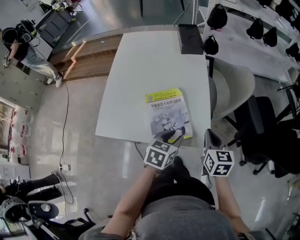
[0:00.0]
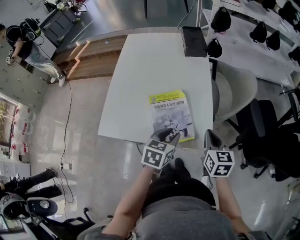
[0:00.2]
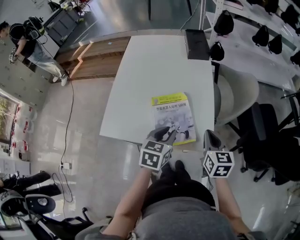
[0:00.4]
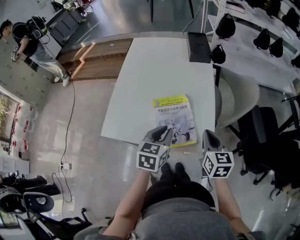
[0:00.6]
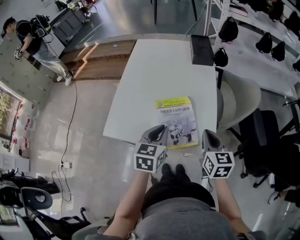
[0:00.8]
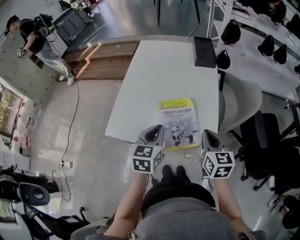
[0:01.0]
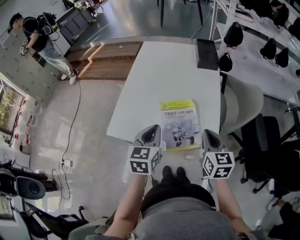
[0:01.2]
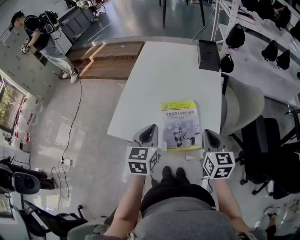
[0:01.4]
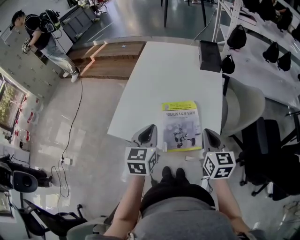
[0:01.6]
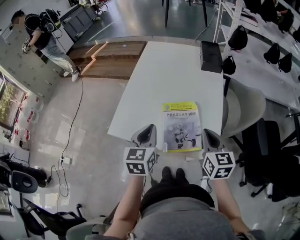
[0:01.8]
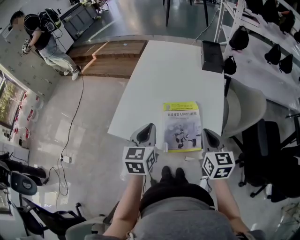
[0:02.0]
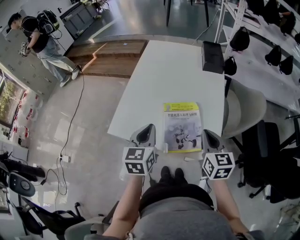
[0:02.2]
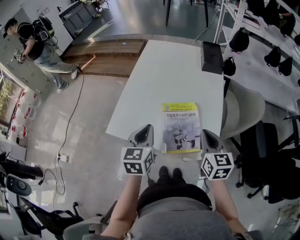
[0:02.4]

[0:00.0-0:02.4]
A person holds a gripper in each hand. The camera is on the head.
0:00.0 to 0:01.2: The right gripper moves to the left, some 5 cm; the left gripper heads to the left and upward, covering roughly 15 cm, turns by some 30 degrees, and closes up.
0:01.2 to 0:02.4: There are only small adjustments of the grippers.

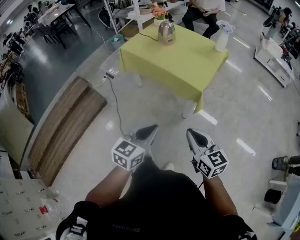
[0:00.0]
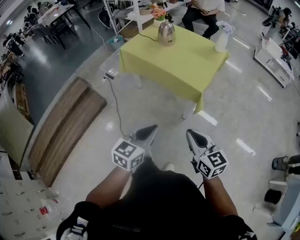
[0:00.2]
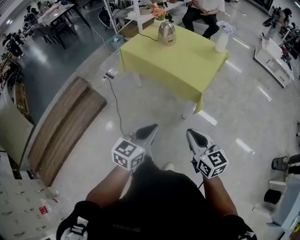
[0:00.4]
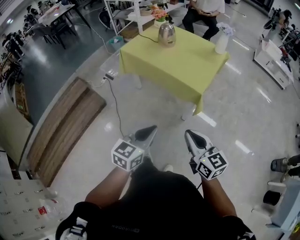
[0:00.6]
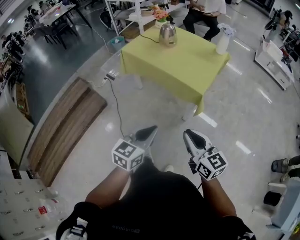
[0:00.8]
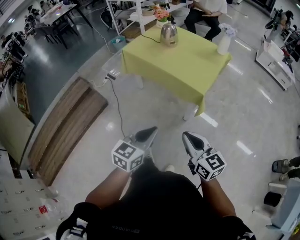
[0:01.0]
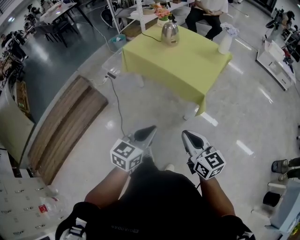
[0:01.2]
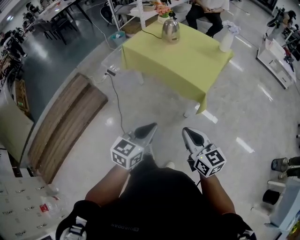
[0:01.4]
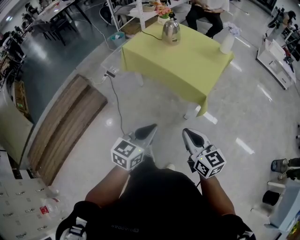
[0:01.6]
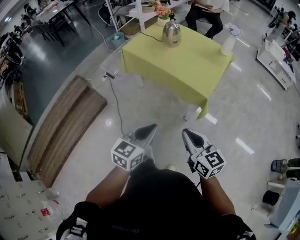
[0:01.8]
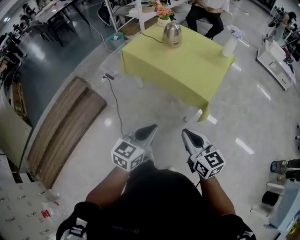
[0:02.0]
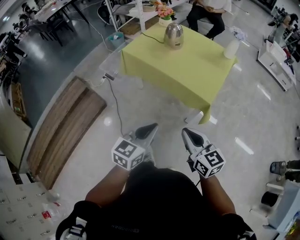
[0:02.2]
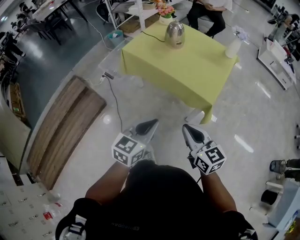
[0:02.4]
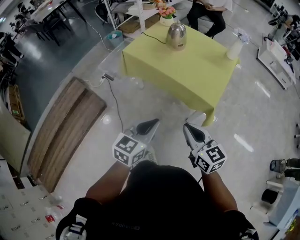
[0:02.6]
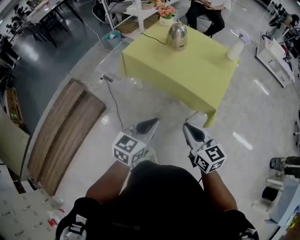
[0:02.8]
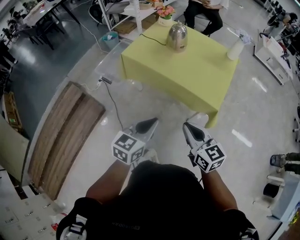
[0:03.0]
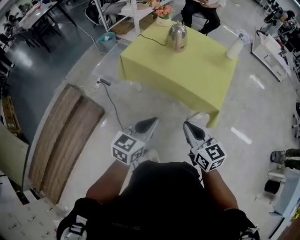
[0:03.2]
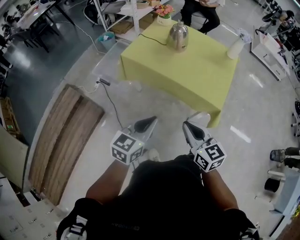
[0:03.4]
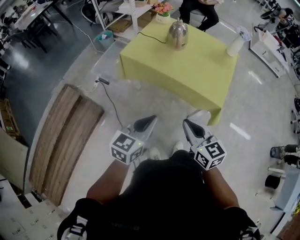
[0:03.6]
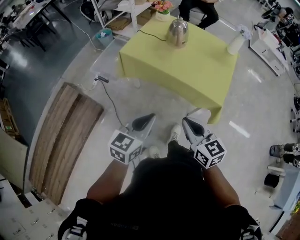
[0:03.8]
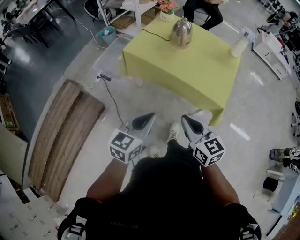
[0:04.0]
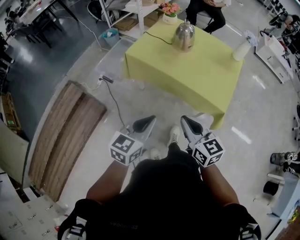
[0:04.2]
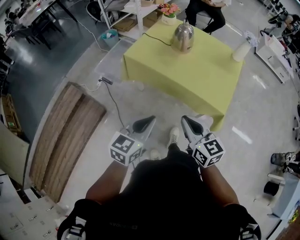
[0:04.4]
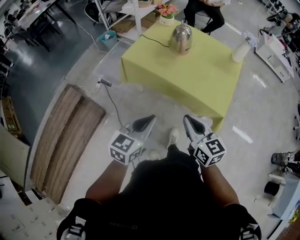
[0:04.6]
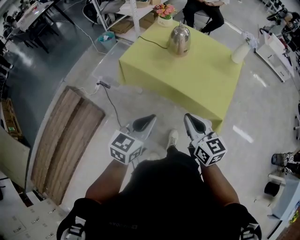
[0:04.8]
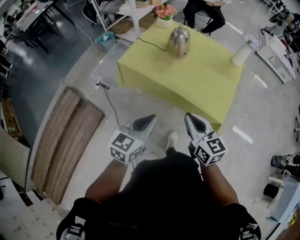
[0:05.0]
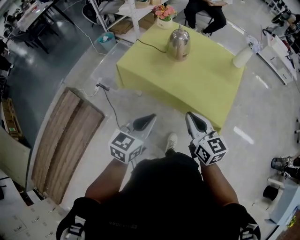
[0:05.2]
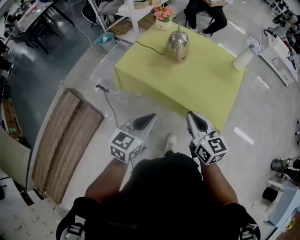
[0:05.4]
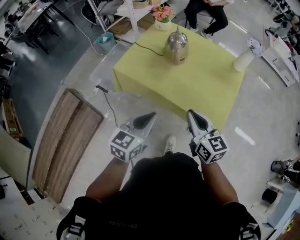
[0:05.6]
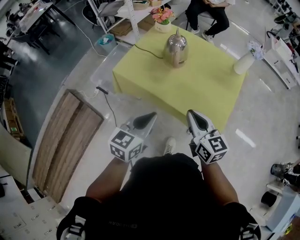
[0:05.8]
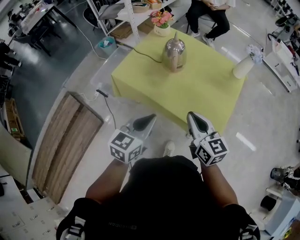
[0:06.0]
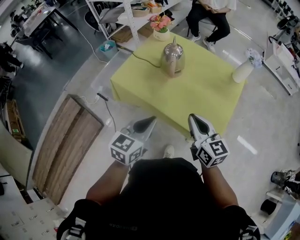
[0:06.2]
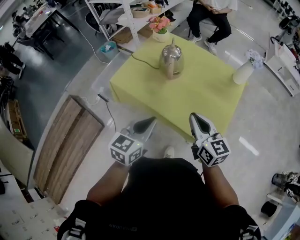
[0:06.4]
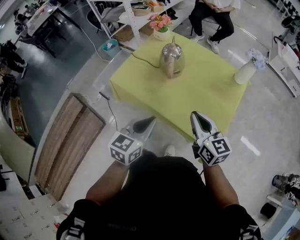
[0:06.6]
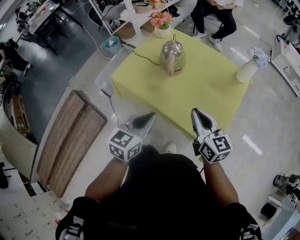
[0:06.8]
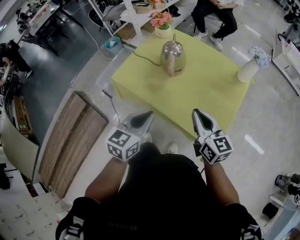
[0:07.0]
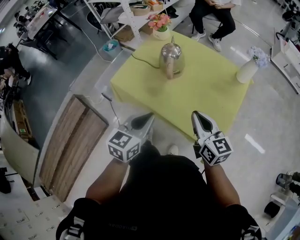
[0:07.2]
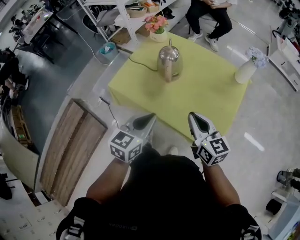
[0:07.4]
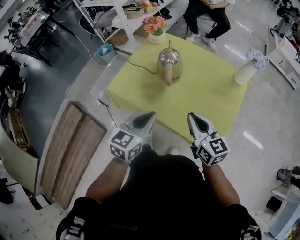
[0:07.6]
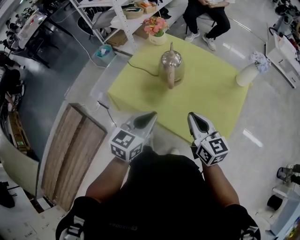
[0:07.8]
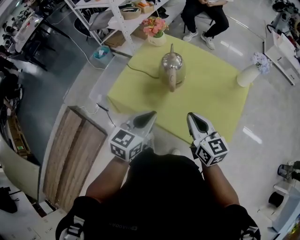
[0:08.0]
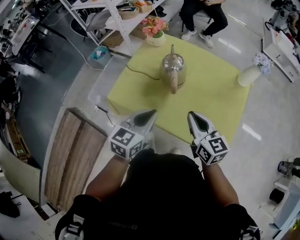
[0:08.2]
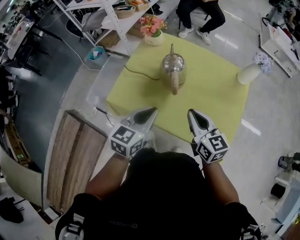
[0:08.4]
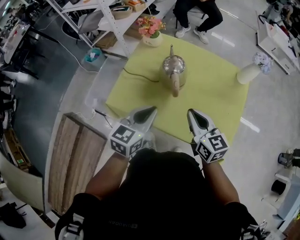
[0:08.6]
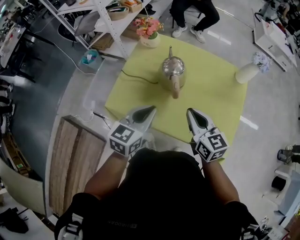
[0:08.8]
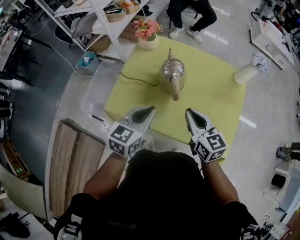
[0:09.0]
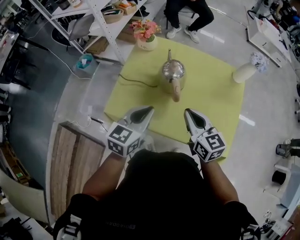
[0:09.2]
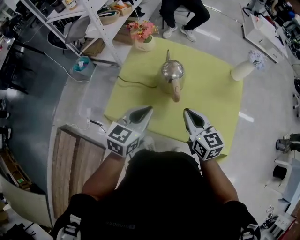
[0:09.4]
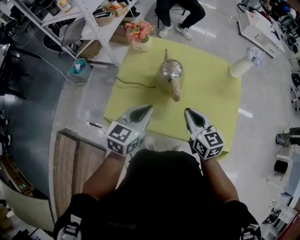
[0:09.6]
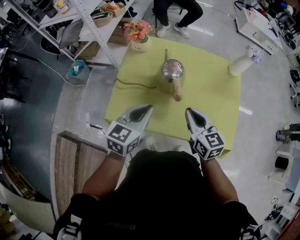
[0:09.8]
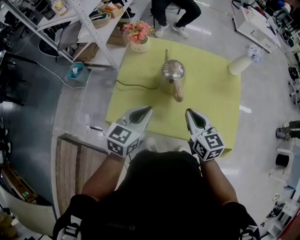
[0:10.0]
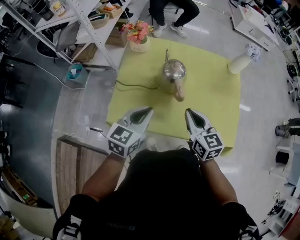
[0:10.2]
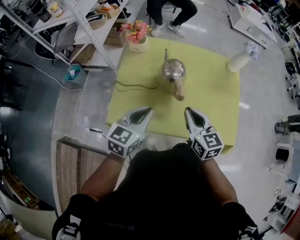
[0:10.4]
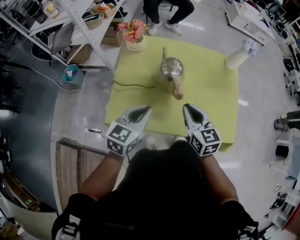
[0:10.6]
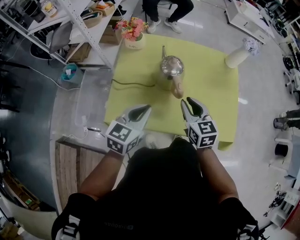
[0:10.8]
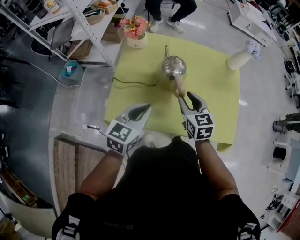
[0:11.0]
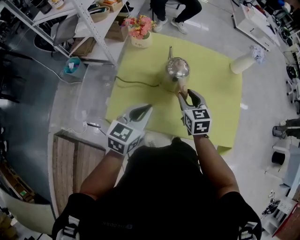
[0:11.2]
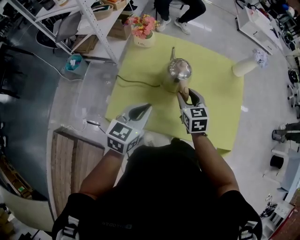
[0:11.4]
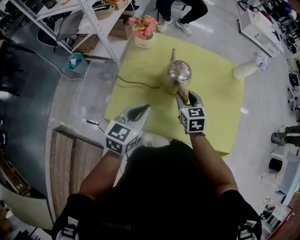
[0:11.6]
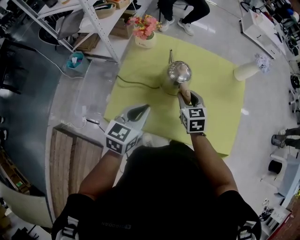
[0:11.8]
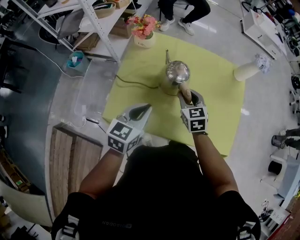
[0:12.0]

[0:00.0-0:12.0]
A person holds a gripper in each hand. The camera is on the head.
0:00.0 to 0:01.6: The right gripper moves roughly 5 cm. The left gripper changes place by roughly 5 cm.
0:01.6 to 0:03.0: Both grippers travel together forward and to the left, roughly 20 cm.
0:03.0 to 0:04.4: The left gripper is displaced to the left by about 5 cm. The right gripper travels forward and to the left by roughly 10 cm.
0:04.4 to 0:06.0: The two grippers go roughly 25 cm forward and to the right.
0:06.0 to 0:07.6: The two grippers go some 10 cm forward.
0:07.6 to 0:09.0: The two grippers go some 15 cm forward and to the left.
0:09.0 to 0:10.4: The left gripper shifts some 5 cm to the left.
0:10.4 to 0:12.0: The right gripper goes about 15 cm forward and downward, turns by about 20 degrees, and opens up.

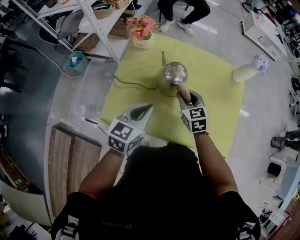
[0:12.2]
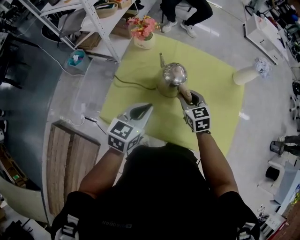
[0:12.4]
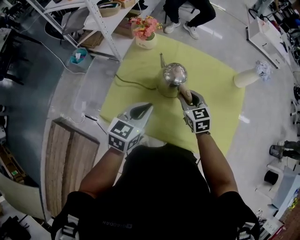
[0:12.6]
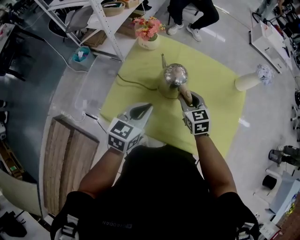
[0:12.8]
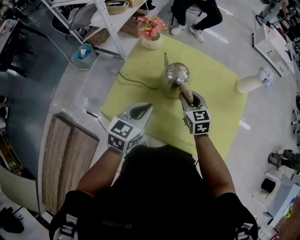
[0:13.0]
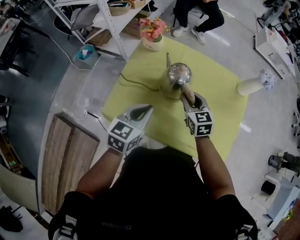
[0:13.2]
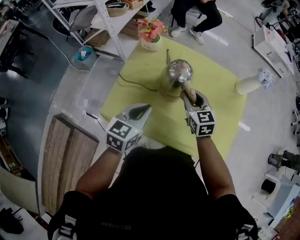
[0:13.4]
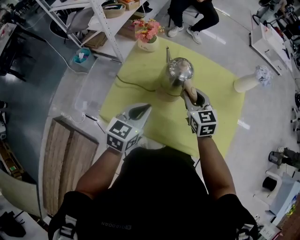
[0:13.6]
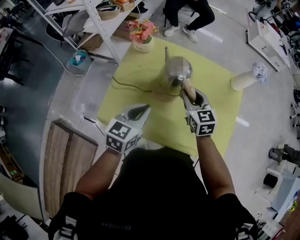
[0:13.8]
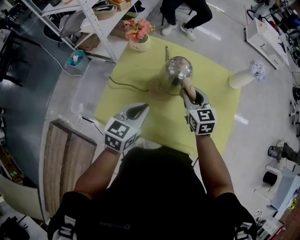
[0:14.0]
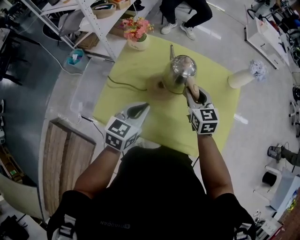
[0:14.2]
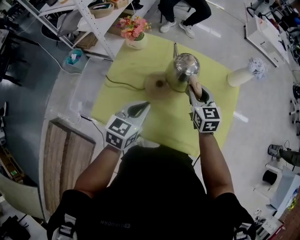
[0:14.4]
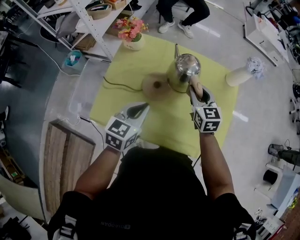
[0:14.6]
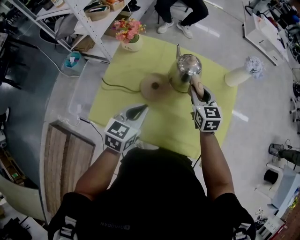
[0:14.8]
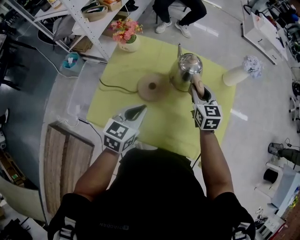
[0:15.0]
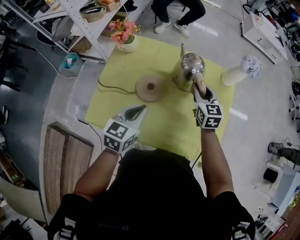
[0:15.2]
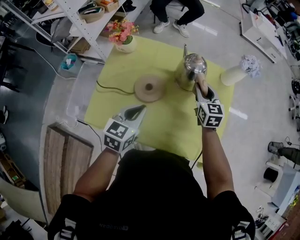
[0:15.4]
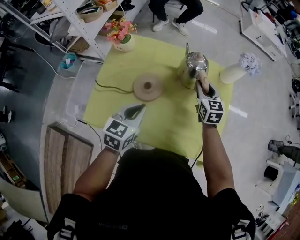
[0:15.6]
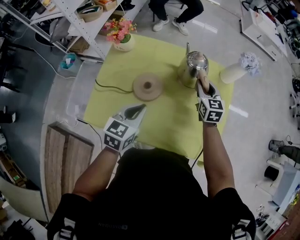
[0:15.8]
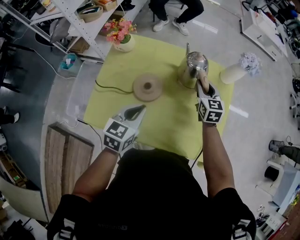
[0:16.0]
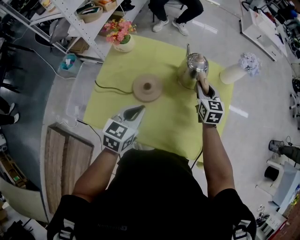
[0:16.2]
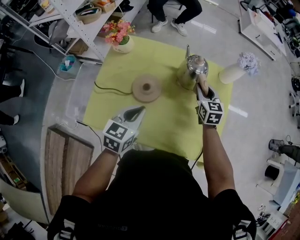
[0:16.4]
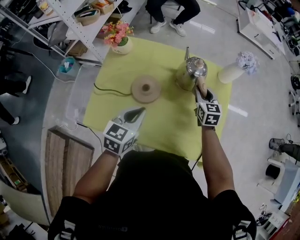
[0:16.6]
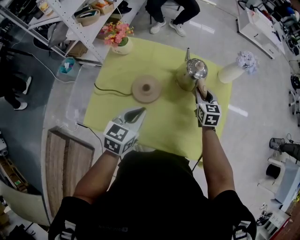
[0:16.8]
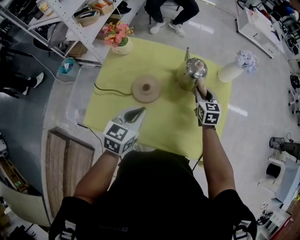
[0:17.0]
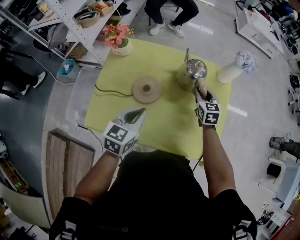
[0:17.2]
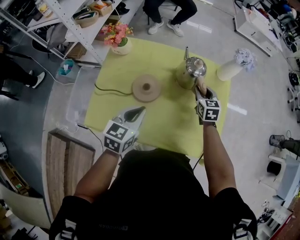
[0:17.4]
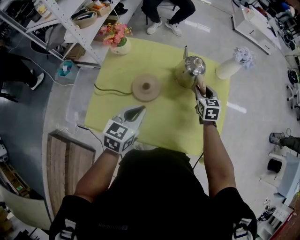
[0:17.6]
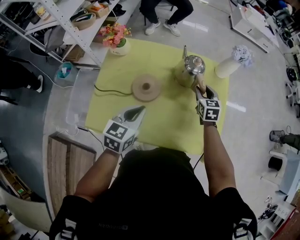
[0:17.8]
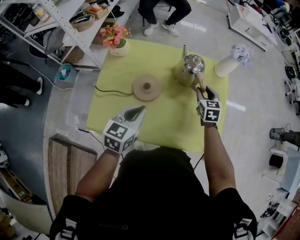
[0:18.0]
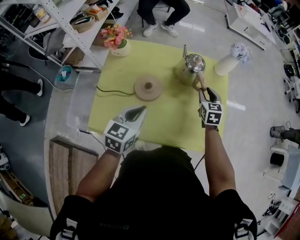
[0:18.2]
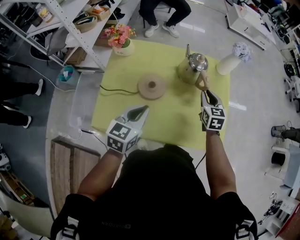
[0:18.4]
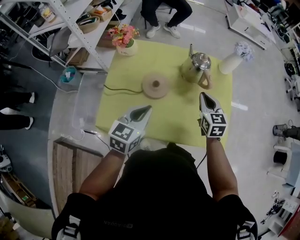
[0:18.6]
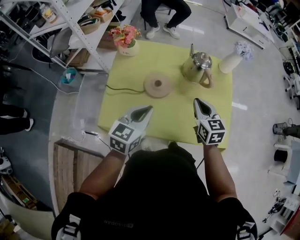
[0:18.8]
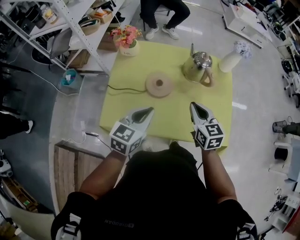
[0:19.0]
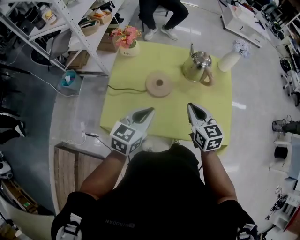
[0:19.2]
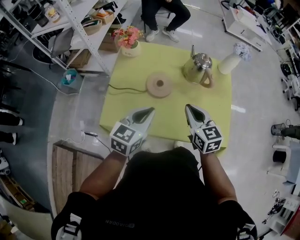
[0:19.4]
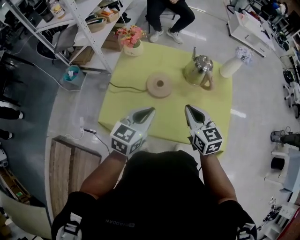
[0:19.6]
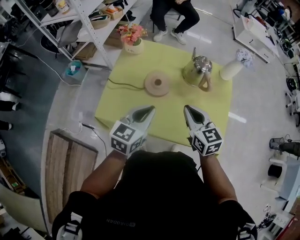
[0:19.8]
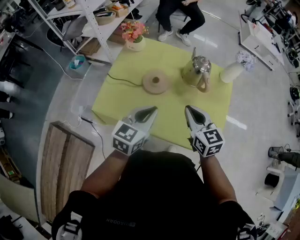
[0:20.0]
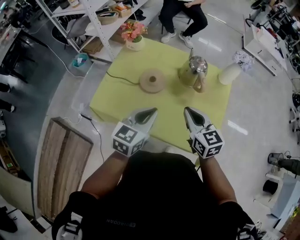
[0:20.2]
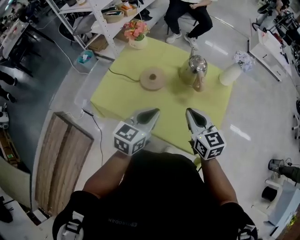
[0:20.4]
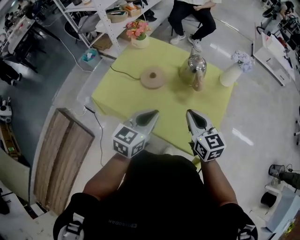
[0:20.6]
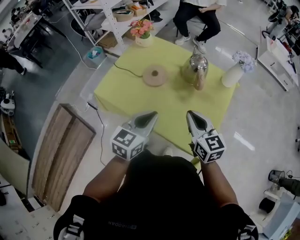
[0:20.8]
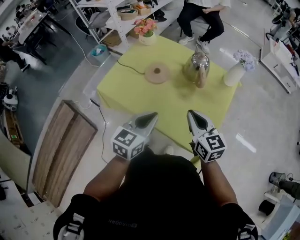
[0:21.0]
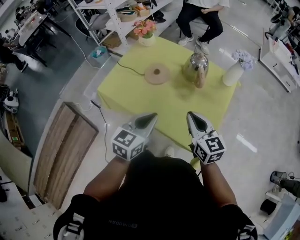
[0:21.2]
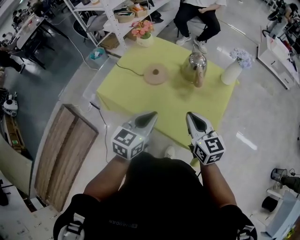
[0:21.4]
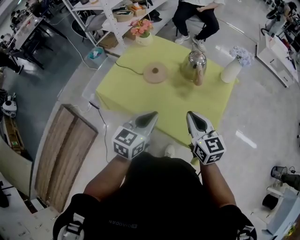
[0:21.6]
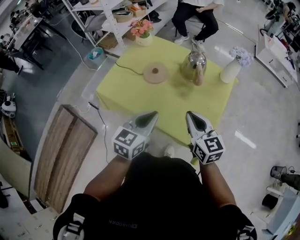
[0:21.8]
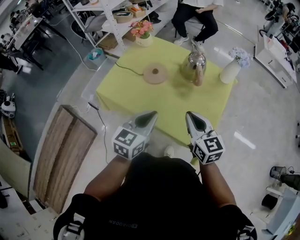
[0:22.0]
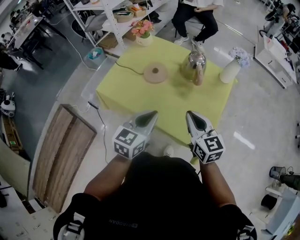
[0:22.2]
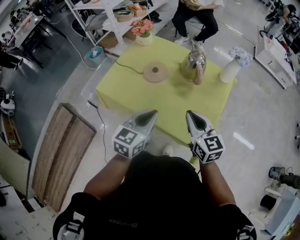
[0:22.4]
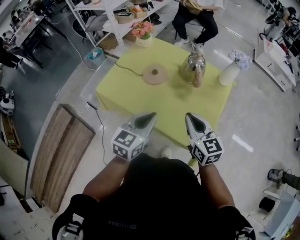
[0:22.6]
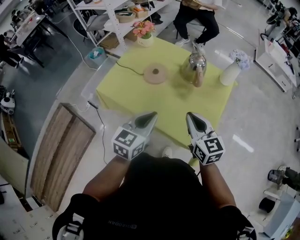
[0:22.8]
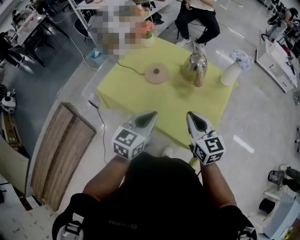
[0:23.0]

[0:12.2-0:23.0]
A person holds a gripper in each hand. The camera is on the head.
0:12.2 to 0:13.8: The right gripper heads upward, covering about 5 cm.
0:13.8 to 0:15.2: The left gripper travels to the right by some 5 cm, while the right gripper travels to the right and forward by approximately 15 cm.
0:15.2 to 0:16.8: The right gripper travels downward and to the right by about 10 cm.
0:16.8 to 0:18.4: The left gripper moves approximately 5 cm. Meanwhile the right gripper is displaced backward by approximately 10 cm.
0:18.4 to 0:20.0: The right gripper is displaced backward, upward and to the left by about 20 cm, and swivels about 30 degrees; the left gripper goes roughly 5 cm to the right.
0:20.0 to 0:21.4: The two grippers go about 15 cm backward and to the right.
0:21.4 to 0:23.0: The grippers move only a little.
